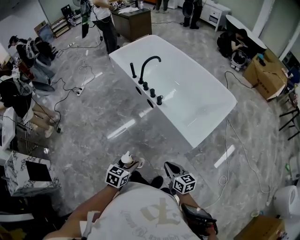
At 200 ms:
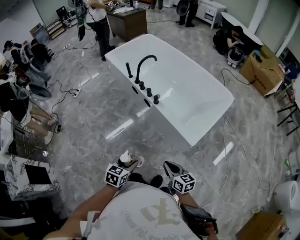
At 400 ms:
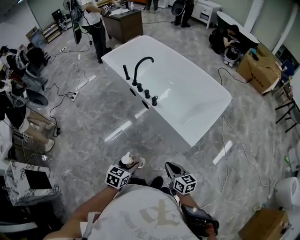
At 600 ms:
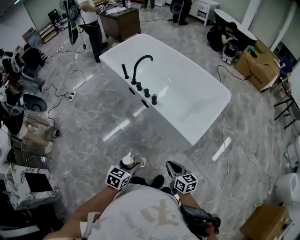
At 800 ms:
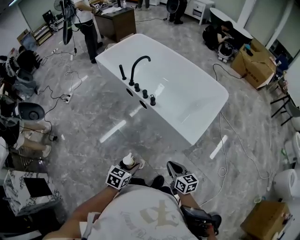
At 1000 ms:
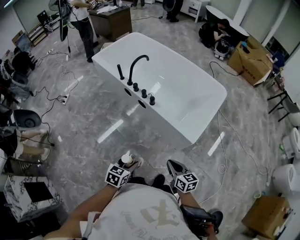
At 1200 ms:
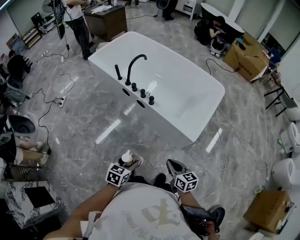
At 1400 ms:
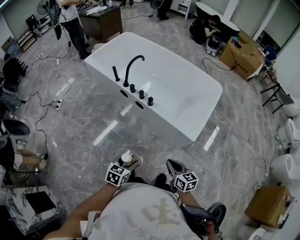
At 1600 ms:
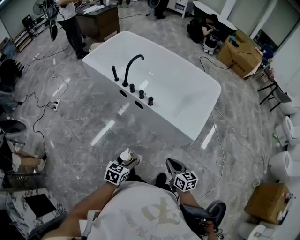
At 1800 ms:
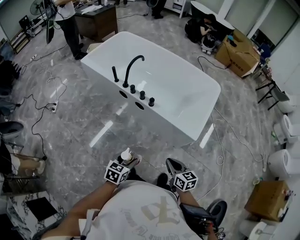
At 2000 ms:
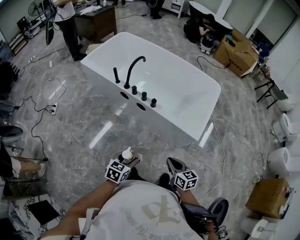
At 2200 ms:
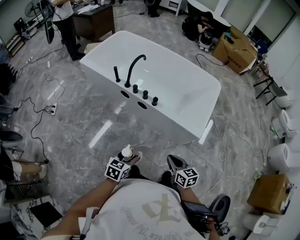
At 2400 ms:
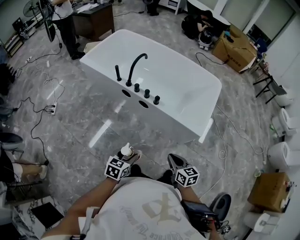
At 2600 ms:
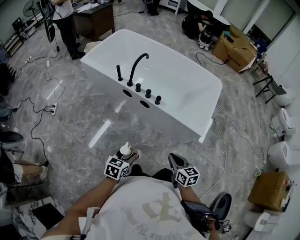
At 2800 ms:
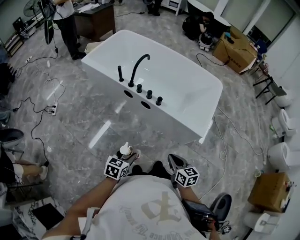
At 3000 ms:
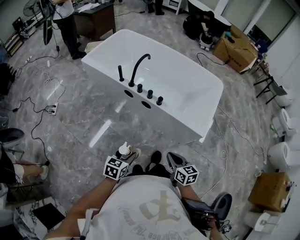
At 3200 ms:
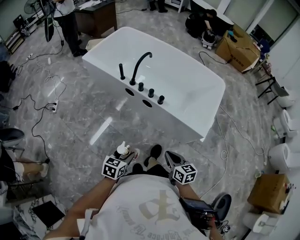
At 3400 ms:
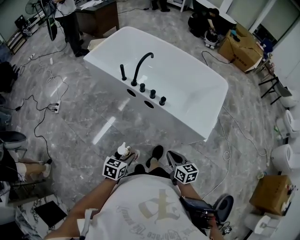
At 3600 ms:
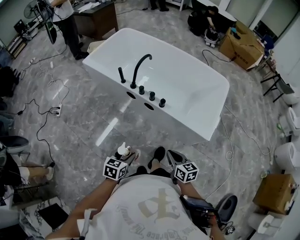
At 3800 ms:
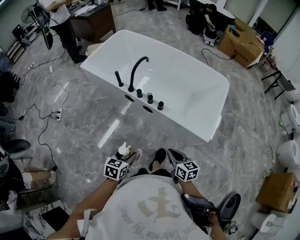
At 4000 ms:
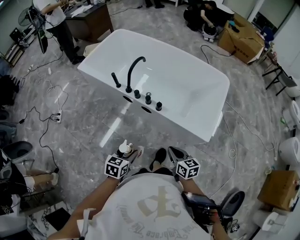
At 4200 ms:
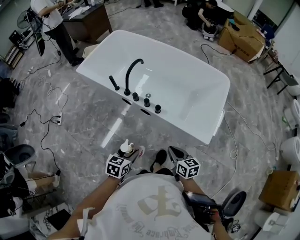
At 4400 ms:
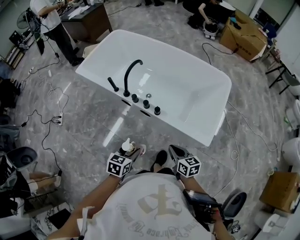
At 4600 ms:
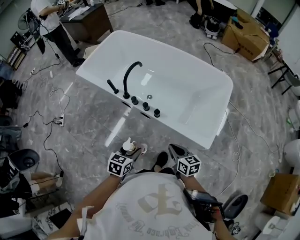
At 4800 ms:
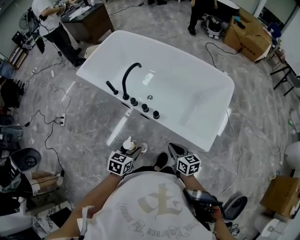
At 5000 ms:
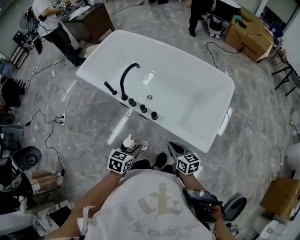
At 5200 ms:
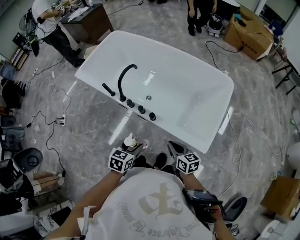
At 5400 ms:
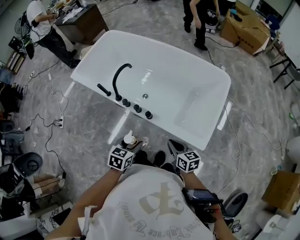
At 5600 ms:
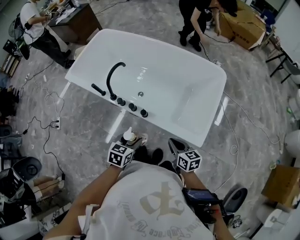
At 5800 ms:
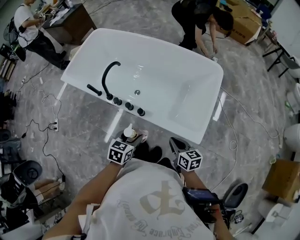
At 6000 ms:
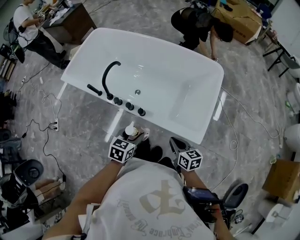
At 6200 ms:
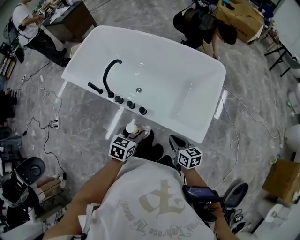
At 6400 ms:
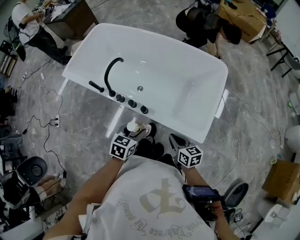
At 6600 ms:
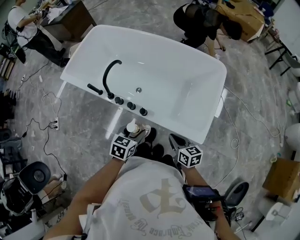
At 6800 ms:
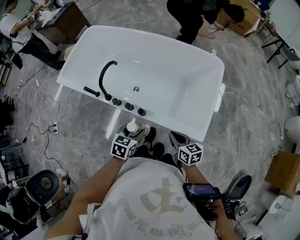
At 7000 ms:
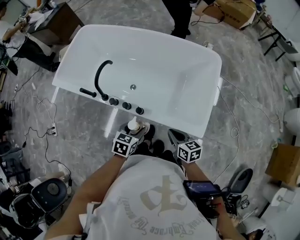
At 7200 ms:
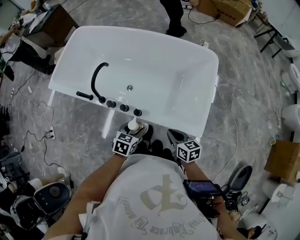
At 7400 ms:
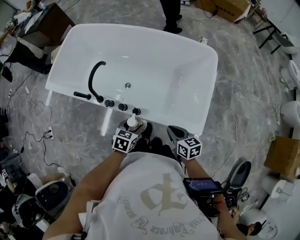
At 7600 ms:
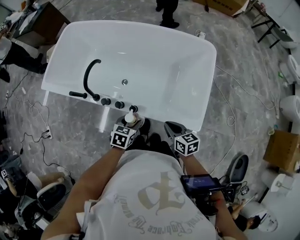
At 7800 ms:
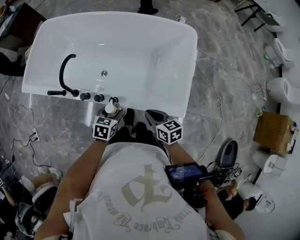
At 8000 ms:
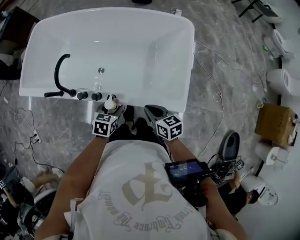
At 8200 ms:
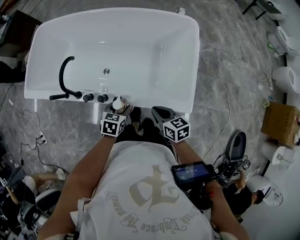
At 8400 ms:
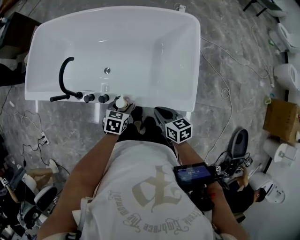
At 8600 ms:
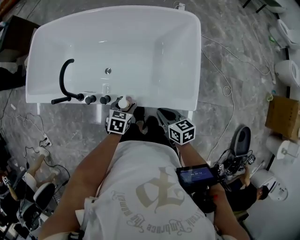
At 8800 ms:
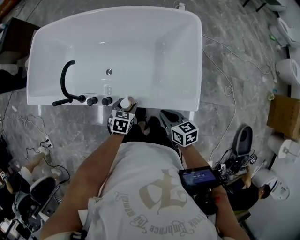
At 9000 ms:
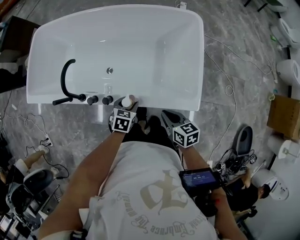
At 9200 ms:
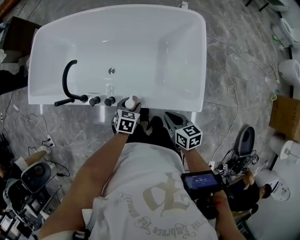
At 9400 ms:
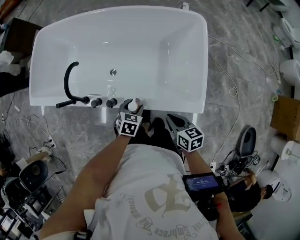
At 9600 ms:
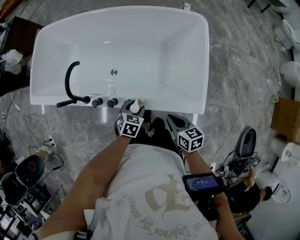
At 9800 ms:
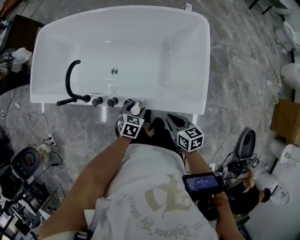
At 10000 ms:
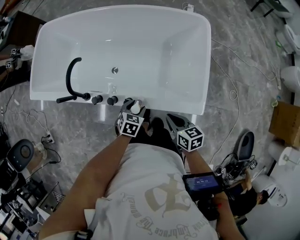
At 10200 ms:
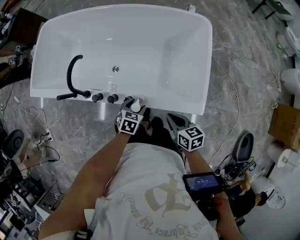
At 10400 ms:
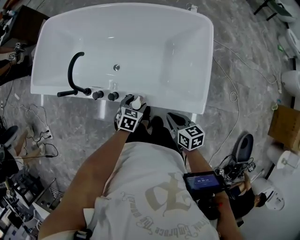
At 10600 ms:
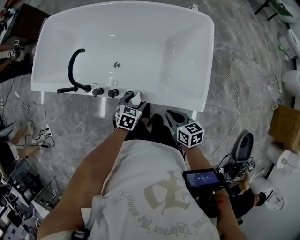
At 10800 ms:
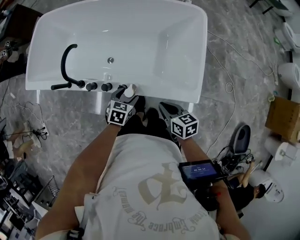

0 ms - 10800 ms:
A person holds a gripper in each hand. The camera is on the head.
0 ms - 1600 ms: The right gripper heads to the left, covering approximately 10 cm. Meanwhile the left gripper moves to the left and forward, some 15 cm.
1600 ms - 3000 ms: Both grippers travel together to the left, about 10 cm.
3000 ms - 4600 ms: The left gripper shifts roughly 20 cm forward and to the right, while the right gripper travels forward by some 20 cm.
4600 ms - 6200 ms: The right gripper is displaced to the right and forward by about 10 cm; the left gripper moves forward and to the right, approximately 15 cm.
6200 ms - 7800 ms: The left gripper moves downward and forward, some 15 cm. The right gripper goes approximately 10 cm forward.
7800 ms - 9200 ms: The left gripper moves downward and forward, about 10 cm.
9200 ms - 10800 ms: There are only small adjustments of the grippers.

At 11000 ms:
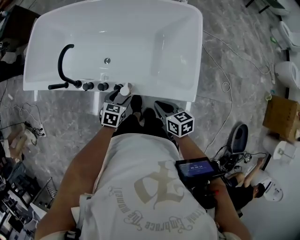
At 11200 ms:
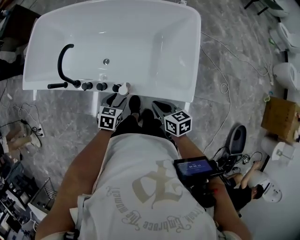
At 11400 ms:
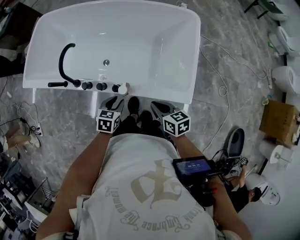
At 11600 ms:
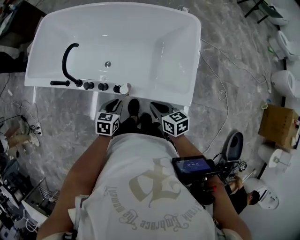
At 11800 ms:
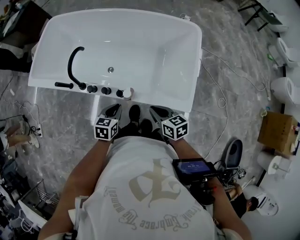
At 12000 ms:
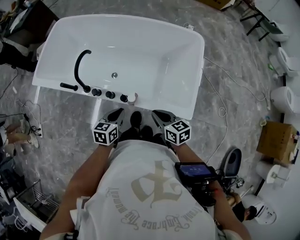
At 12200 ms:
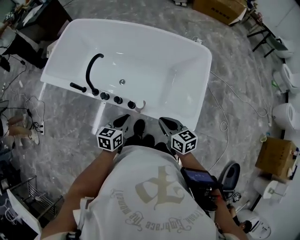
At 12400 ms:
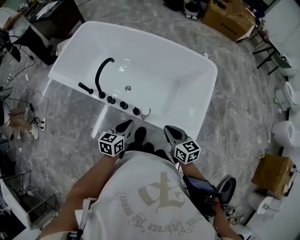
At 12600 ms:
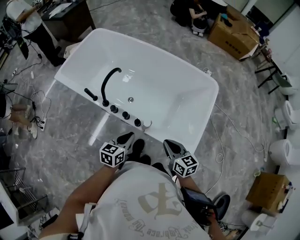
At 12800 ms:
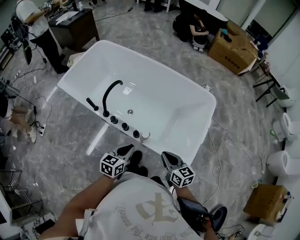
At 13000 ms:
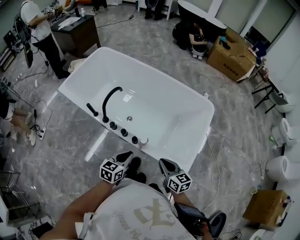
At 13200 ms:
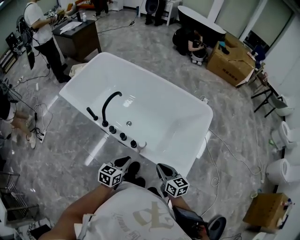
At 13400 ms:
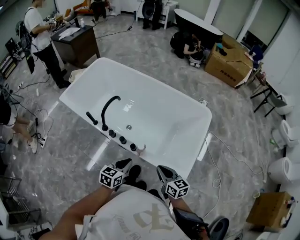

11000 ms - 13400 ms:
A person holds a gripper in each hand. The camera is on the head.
11000 ms - 12200 ms: The right gripper travels upward by approximately 10 cm, while the left gripper moves upward, about 10 cm, changes its angle by roughly 30 degrees, and closes up.
12200 ms - 13400 ms: The left gripper shifts approximately 5 cm backward, while the right gripper moves some 5 cm.

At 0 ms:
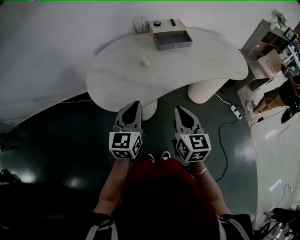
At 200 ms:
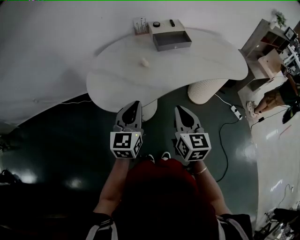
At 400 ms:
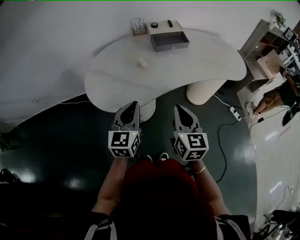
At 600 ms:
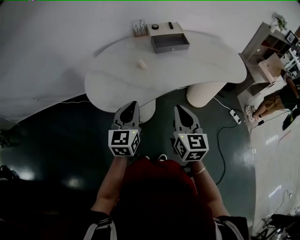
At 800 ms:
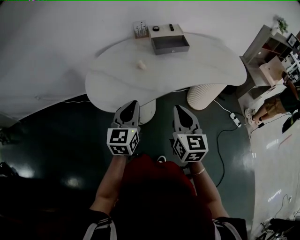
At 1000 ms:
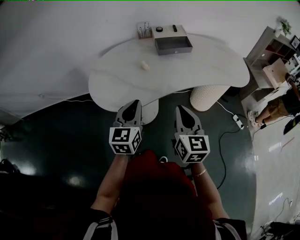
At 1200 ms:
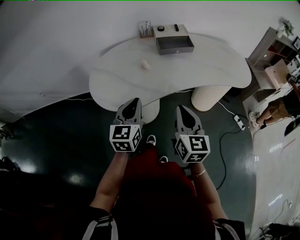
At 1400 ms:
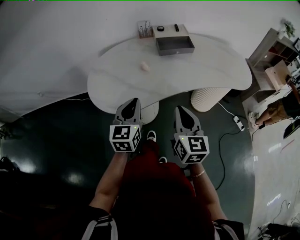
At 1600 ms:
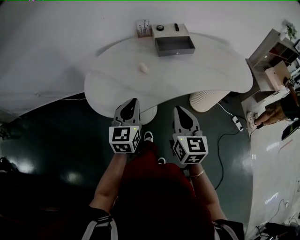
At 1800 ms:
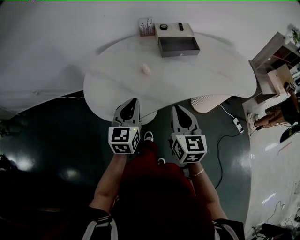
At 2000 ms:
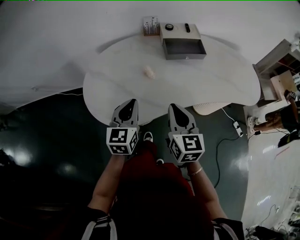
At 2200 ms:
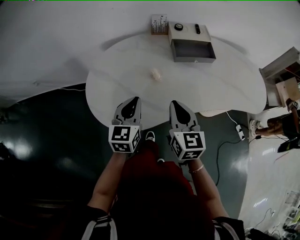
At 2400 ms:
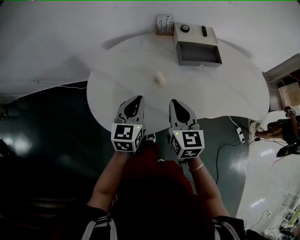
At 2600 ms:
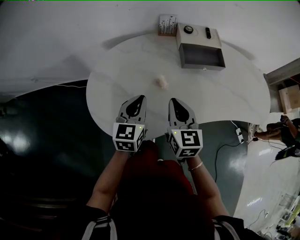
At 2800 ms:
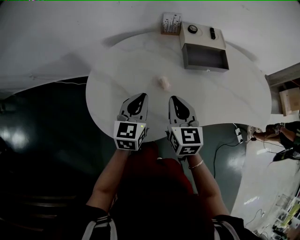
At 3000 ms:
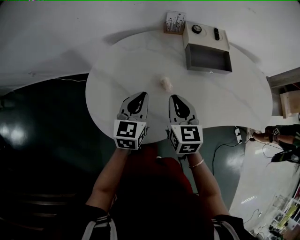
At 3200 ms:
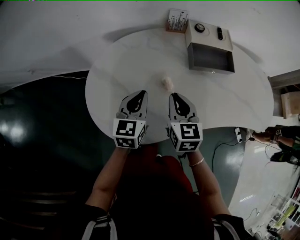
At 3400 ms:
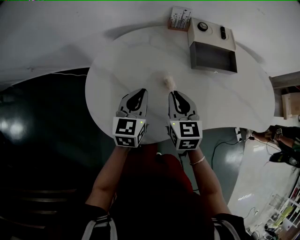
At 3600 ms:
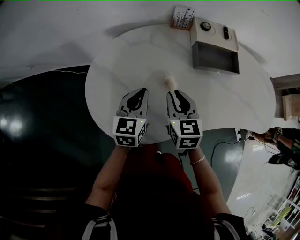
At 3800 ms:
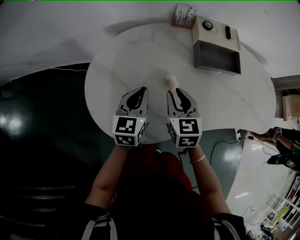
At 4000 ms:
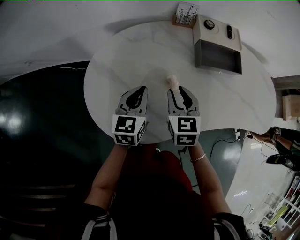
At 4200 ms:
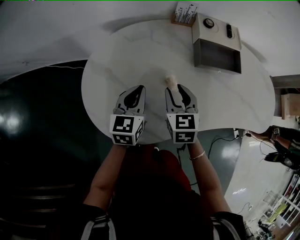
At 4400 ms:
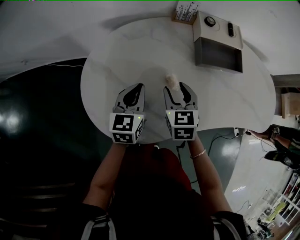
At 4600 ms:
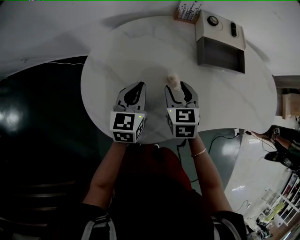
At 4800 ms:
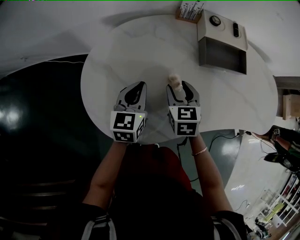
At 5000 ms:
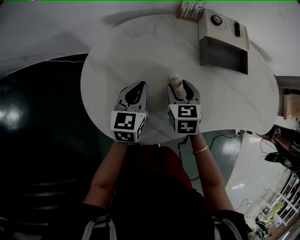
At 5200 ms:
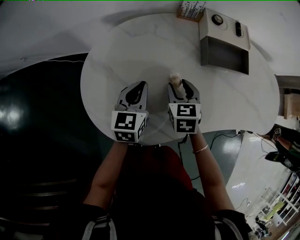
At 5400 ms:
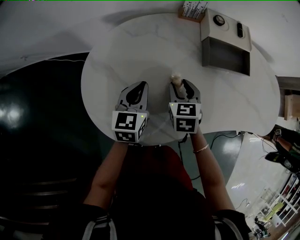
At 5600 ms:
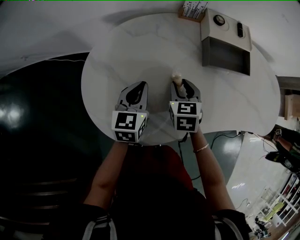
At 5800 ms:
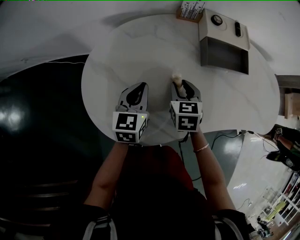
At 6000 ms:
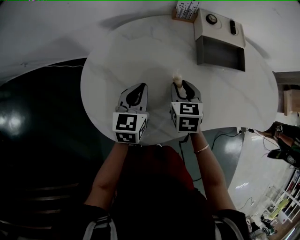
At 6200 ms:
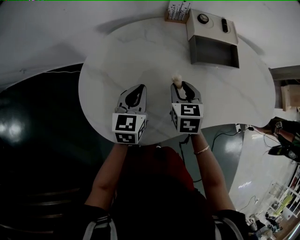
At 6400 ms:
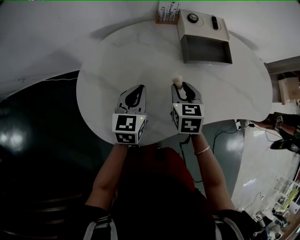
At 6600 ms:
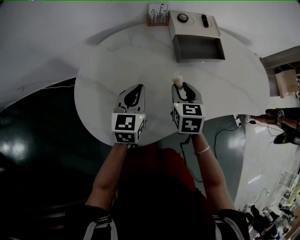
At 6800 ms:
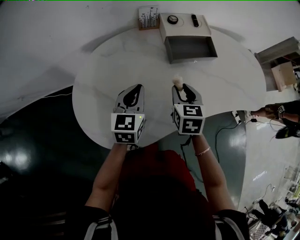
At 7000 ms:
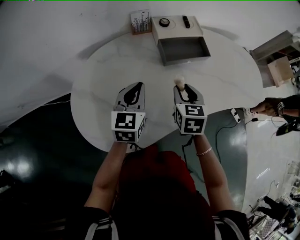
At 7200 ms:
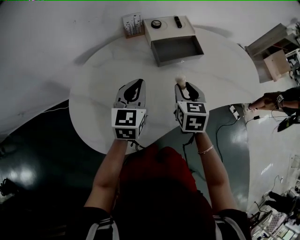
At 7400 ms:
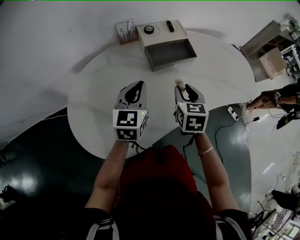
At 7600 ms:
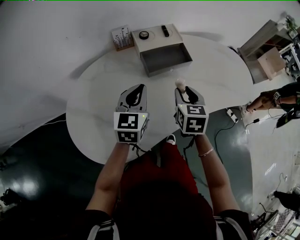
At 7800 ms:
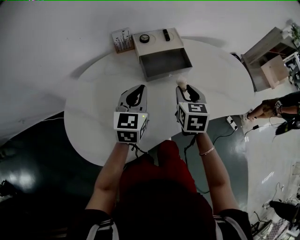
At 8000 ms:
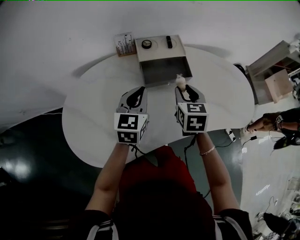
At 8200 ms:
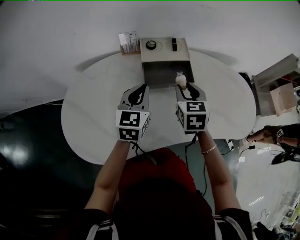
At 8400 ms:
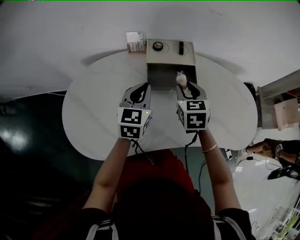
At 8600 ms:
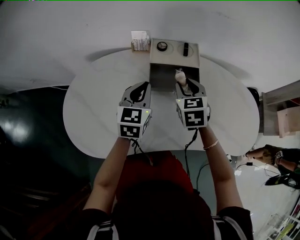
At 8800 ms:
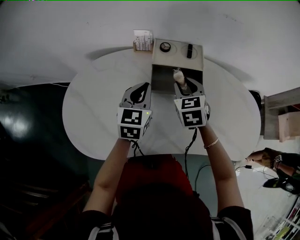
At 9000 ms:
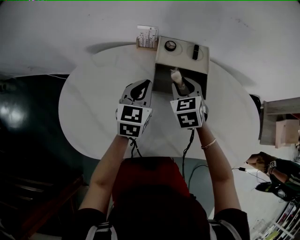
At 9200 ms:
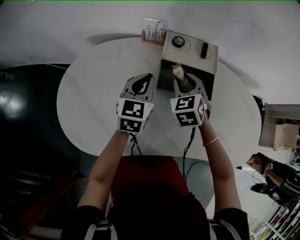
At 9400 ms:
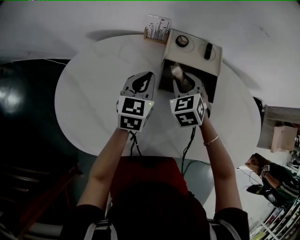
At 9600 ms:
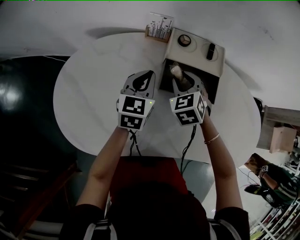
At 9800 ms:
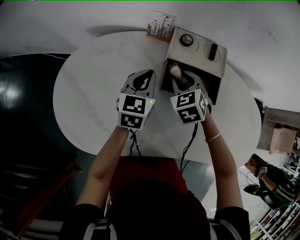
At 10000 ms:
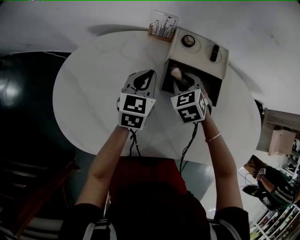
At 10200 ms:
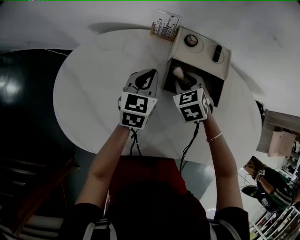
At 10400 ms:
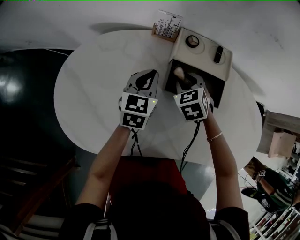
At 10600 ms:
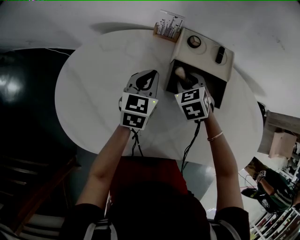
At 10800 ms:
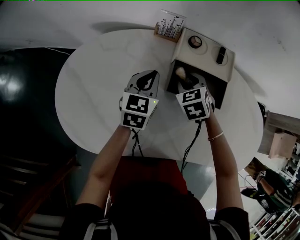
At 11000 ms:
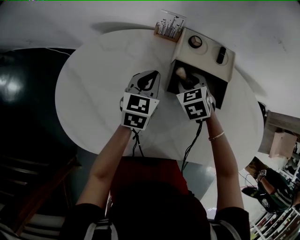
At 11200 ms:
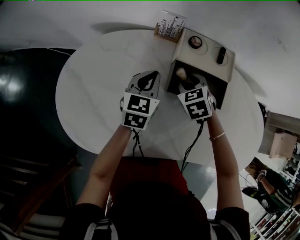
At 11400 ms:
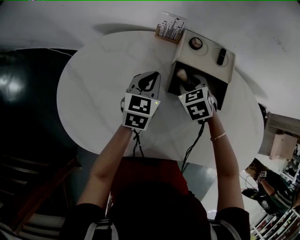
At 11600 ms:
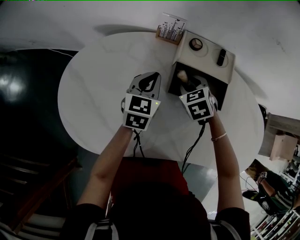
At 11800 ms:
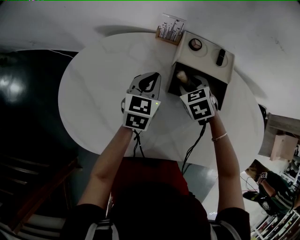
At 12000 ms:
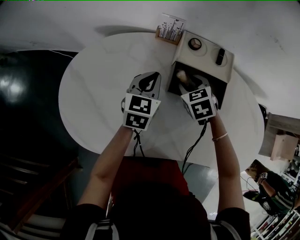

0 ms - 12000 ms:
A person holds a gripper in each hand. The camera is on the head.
0 ms - 1600 ms: The right gripper changes place by some 5 cm; the left gripper travels forward by some 5 cm.
1600 ms - 3000 ms: The right gripper travels forward and to the left by some 25 cm. The left gripper heads forward, covering roughly 20 cm.
3000 ms - 4400 ms: The left gripper shifts by roughly 5 cm; the right gripper travels downward by about 5 cm, and opens its fingers.
4400 ms - 6000 ms: The grippers make only small movements.
6000 ms - 7600 ms: The grippers both shift to the right and upward by about 20 cm. The right gripper turns by about 20 degrees; the left gripper rotates some 20 degrees.
7600 ms - 9000 ms: The right gripper moves approximately 15 cm, and swivels about 40 degrees, while the left gripper changes place by some 10 cm, and rotates approximately 20 degrees.
9000 ms - 10400 ms: The two grippers go roughly 5 cm downward.
10400 ms - 12000 ms: The grippers stay close to where they were, moving slightly.
